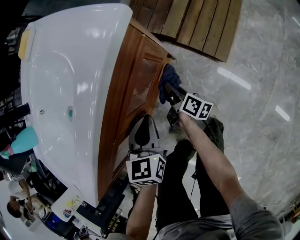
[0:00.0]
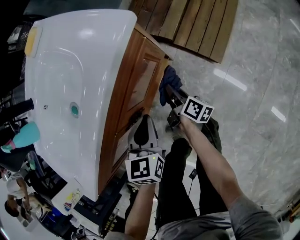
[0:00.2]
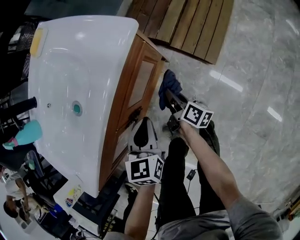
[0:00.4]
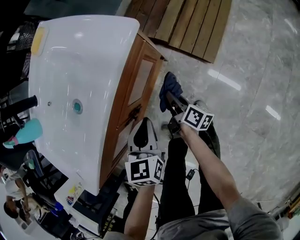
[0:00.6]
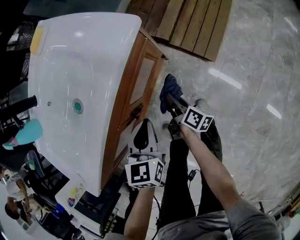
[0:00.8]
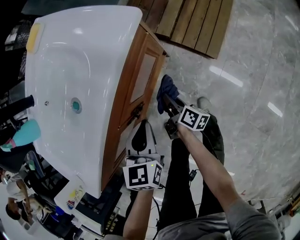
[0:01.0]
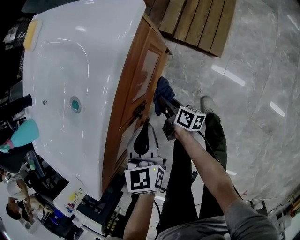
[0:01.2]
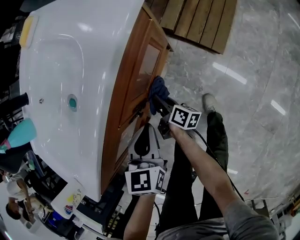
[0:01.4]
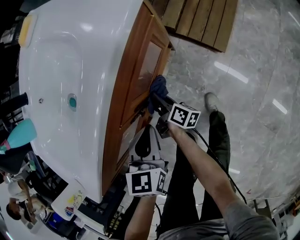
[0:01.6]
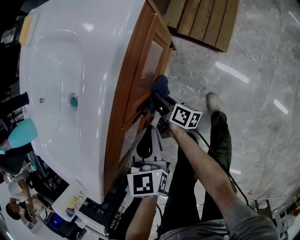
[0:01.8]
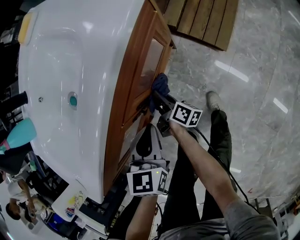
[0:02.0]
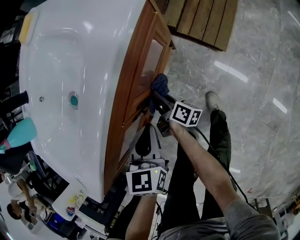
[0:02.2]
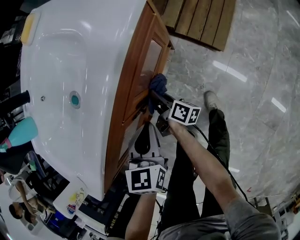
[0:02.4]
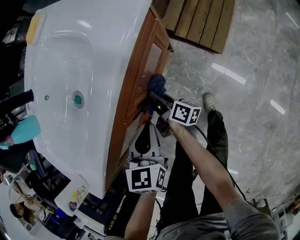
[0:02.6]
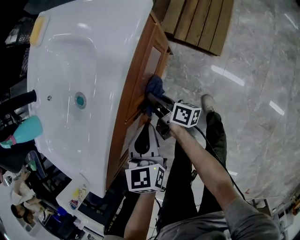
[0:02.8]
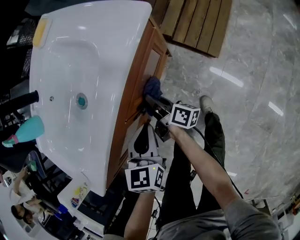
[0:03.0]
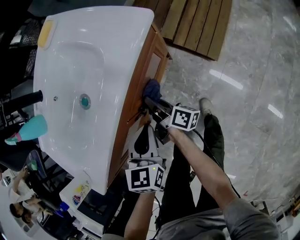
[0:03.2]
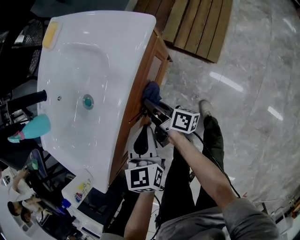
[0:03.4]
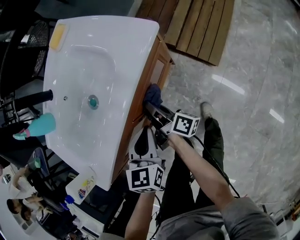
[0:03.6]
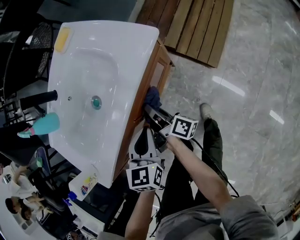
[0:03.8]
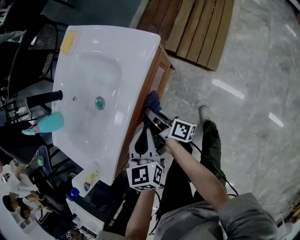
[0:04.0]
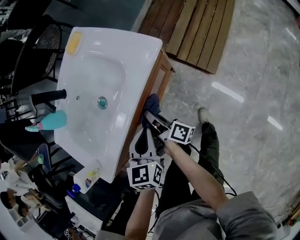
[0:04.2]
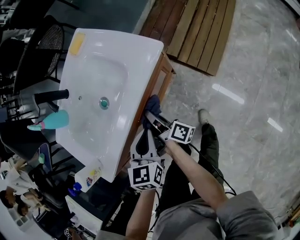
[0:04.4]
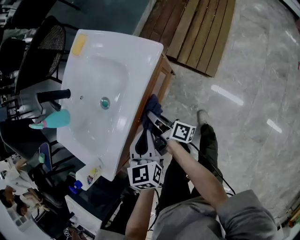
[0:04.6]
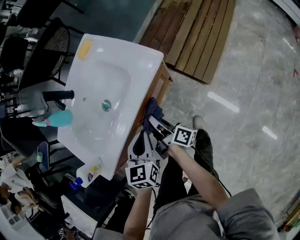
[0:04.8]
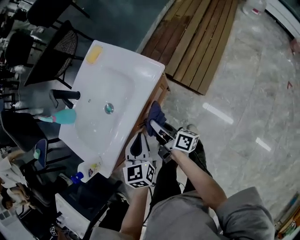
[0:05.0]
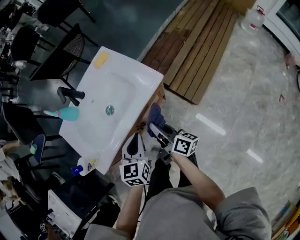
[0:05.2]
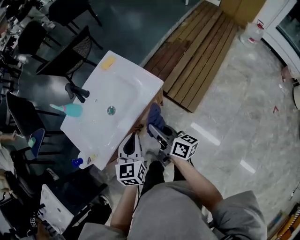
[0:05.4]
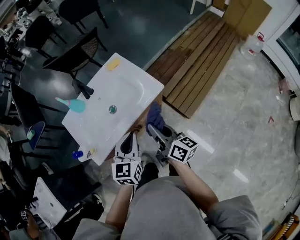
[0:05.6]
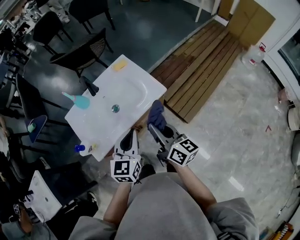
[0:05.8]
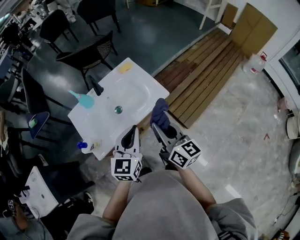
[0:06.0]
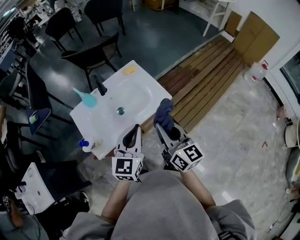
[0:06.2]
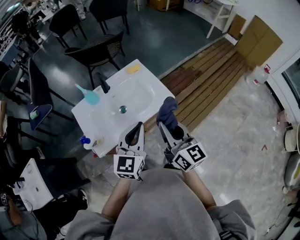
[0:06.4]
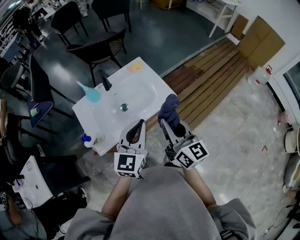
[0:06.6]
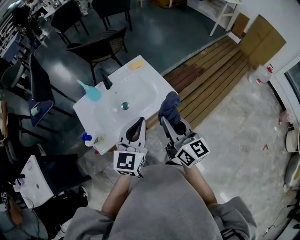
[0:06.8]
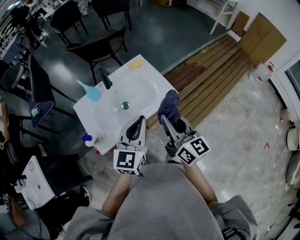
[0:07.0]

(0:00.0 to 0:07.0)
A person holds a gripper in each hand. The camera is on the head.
0:00.0 - 0:01.4: The right gripper travels to the left and backward by approximately 10 cm. The left gripper travels backward by approximately 5 cm.
0:01.4 - 0:02.8: The right gripper goes approximately 10 cm upward.
0:02.8 - 0:04.2: The right gripper is displaced upward by about 15 cm, while the left gripper shifts about 10 cm upward.
0:04.2 - 0:05.6: Both grippers move upward, some 25 cm. The right gripper rotates around the line of its fingers by approximately 40 degrees, counterclockwise from behind.
0:05.6 - 0:07.0: The two grippers go about 10 cm upward. The right gripper swivels about 30 degrees.

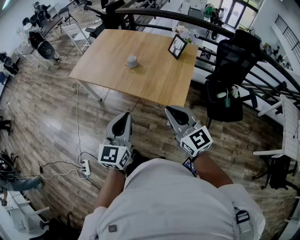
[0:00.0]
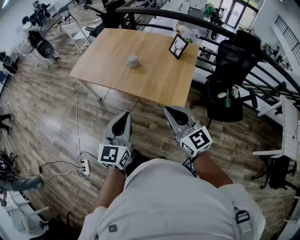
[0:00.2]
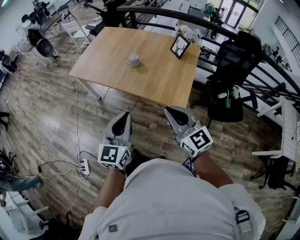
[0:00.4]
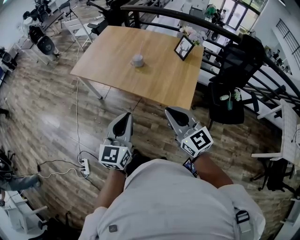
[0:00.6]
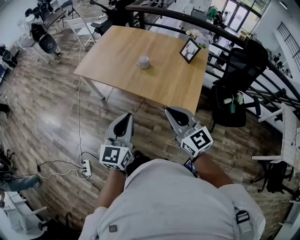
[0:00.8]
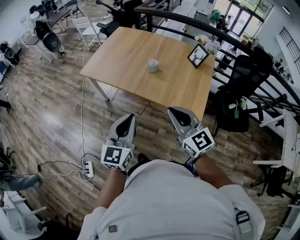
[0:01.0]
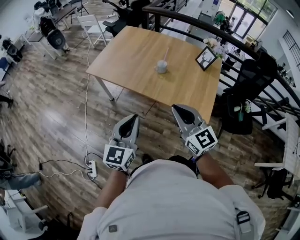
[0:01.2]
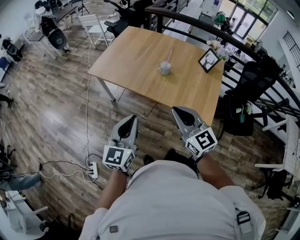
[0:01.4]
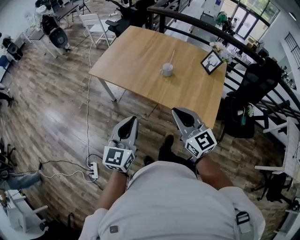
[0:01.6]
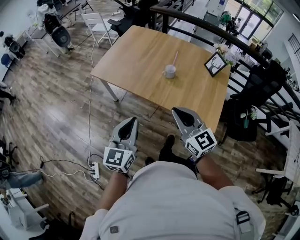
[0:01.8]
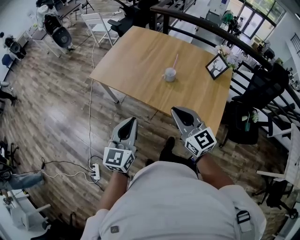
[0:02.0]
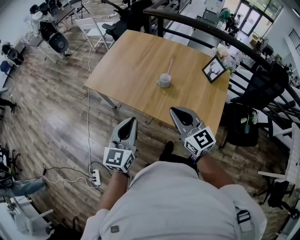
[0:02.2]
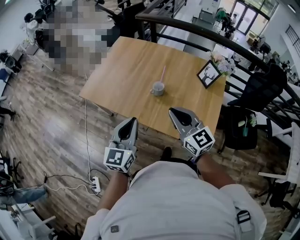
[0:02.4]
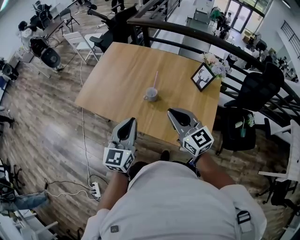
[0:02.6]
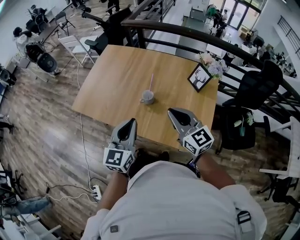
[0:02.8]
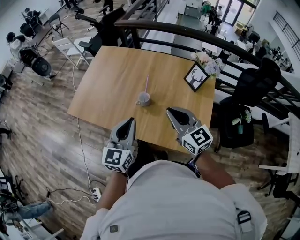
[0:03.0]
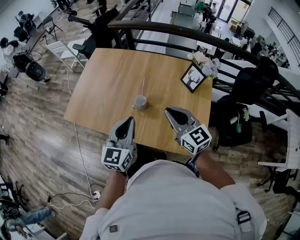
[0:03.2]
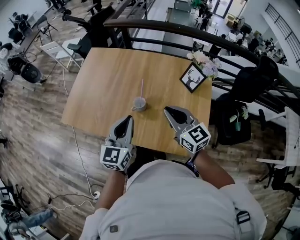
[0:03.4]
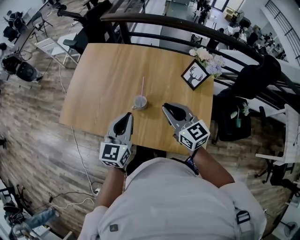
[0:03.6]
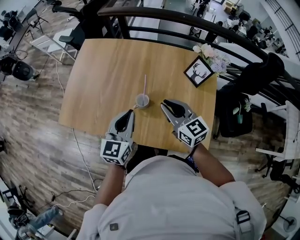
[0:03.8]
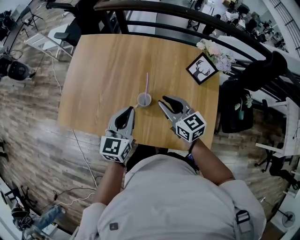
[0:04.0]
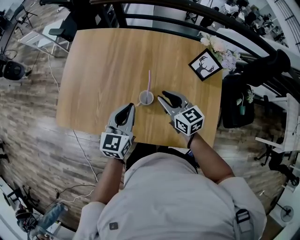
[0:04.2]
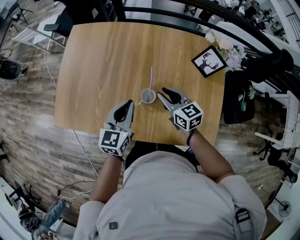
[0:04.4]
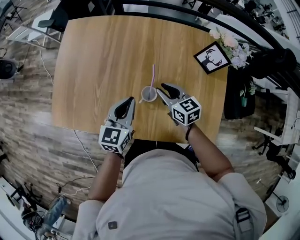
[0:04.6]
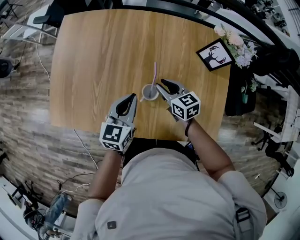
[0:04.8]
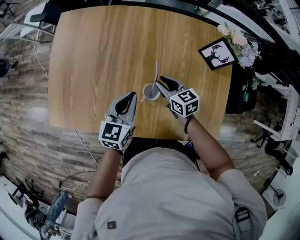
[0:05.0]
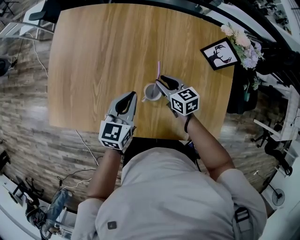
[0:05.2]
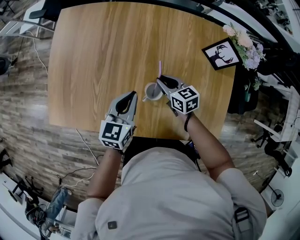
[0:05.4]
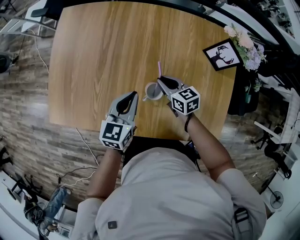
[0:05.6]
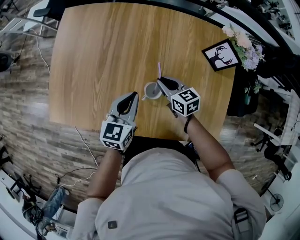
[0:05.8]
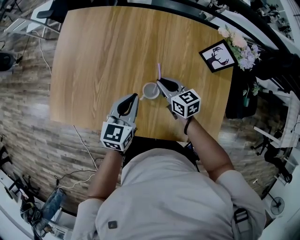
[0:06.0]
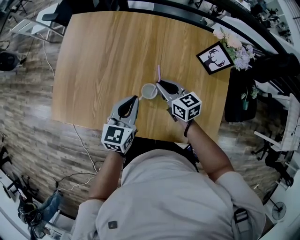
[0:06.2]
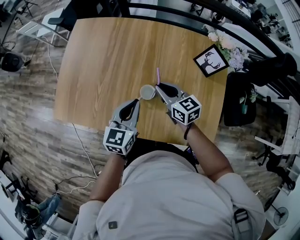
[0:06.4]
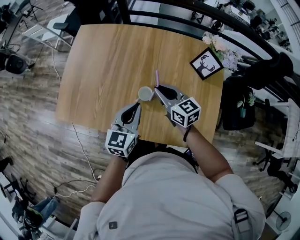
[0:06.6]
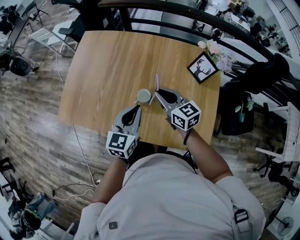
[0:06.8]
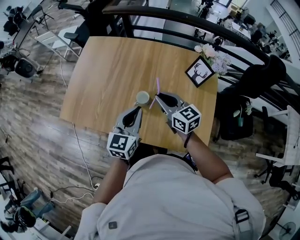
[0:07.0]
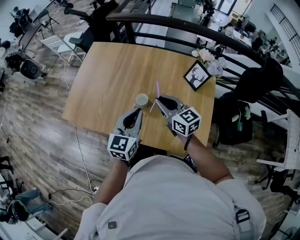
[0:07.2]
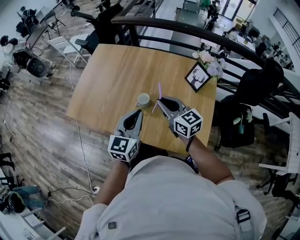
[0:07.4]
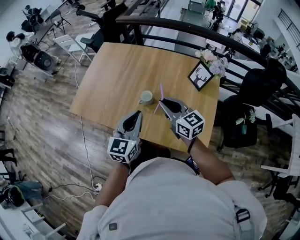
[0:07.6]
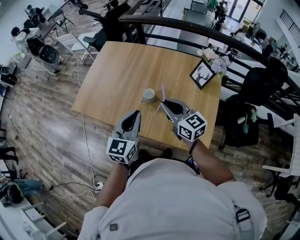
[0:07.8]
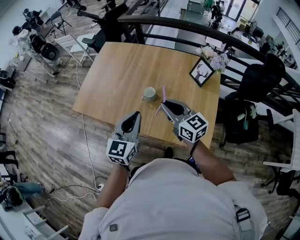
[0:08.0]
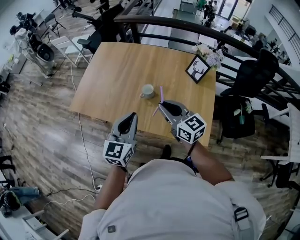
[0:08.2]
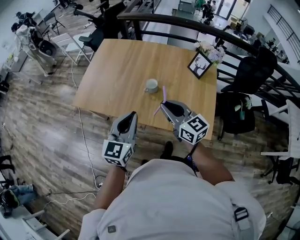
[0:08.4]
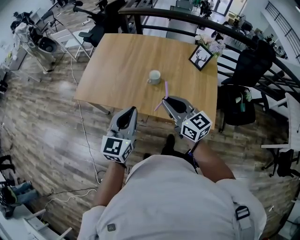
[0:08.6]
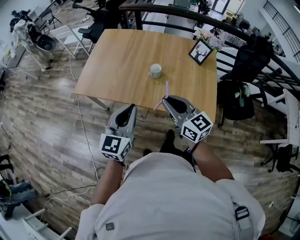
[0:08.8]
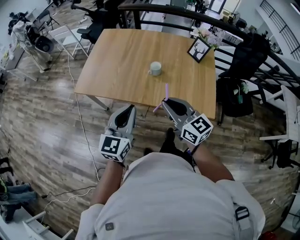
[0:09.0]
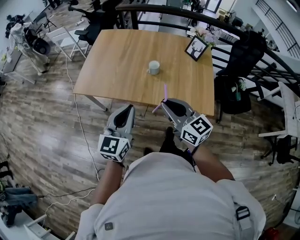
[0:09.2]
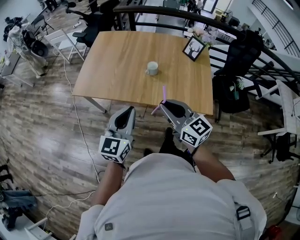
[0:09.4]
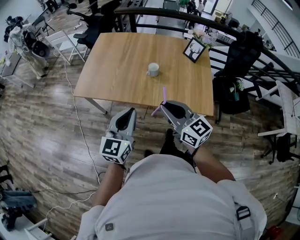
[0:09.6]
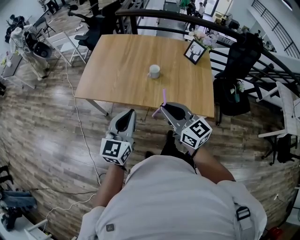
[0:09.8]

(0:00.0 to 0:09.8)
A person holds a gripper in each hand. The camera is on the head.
0:00.0 - 0:01.4: The two grippers go roughly 25 cm to the left and forward.
0:01.4 - 0:02.8: Both grippers travel together forward and to the right, about 30 cm.
0:02.8 - 0:04.2: The grippers both shift forward and downward by some 30 cm. The right gripper rotates roughly 20 degrees, and opens up.
0:04.2 - 0:05.6: The grippers both shift downward and forward by approximately 15 cm.
0:05.6 - 0:07.0: The left gripper heads backward, upward and to the right, covering approximately 20 cm, while the right gripper moves upward and backward, approximately 25 cm, and rotates approximately 20 degrees.
0:07.0 - 0:08.4: The left gripper is displaced backward, to the left and upward by some 25 cm; the right gripper travels backward and upward by approximately 20 cm.
0:08.4 - 0:09.8: Both grippers travel together backward and to the left, roughly 20 cm.

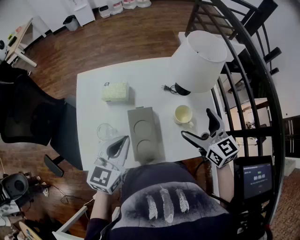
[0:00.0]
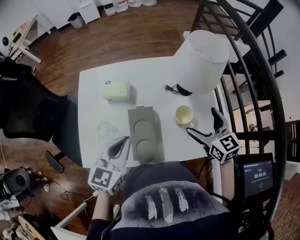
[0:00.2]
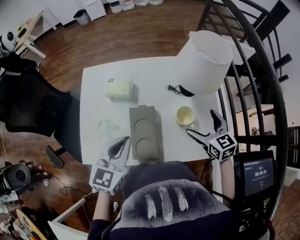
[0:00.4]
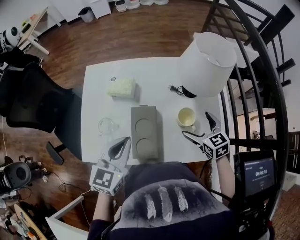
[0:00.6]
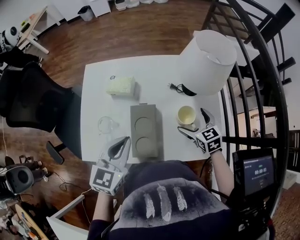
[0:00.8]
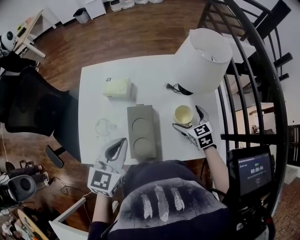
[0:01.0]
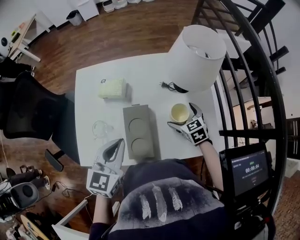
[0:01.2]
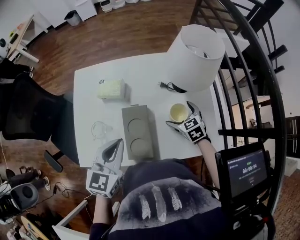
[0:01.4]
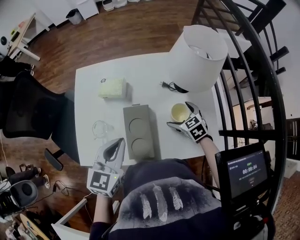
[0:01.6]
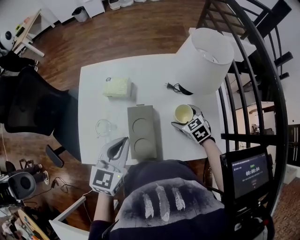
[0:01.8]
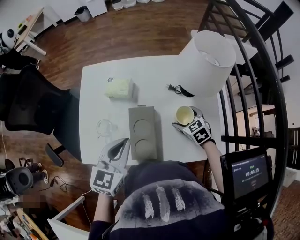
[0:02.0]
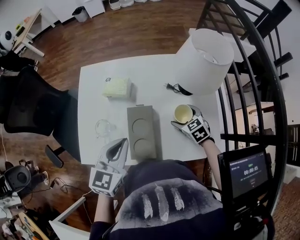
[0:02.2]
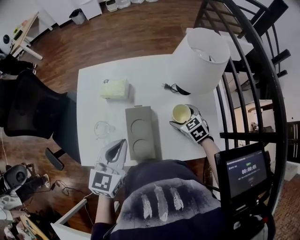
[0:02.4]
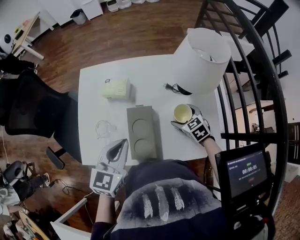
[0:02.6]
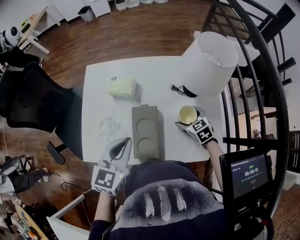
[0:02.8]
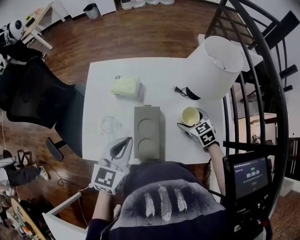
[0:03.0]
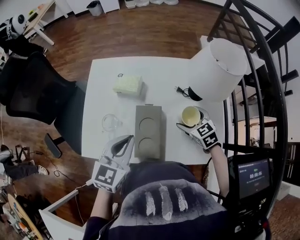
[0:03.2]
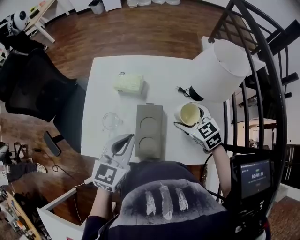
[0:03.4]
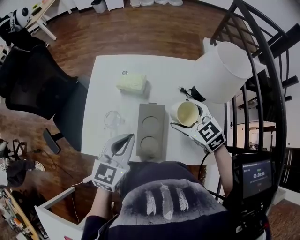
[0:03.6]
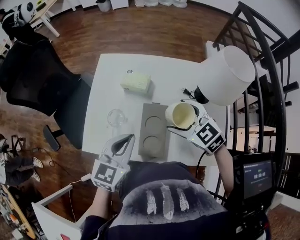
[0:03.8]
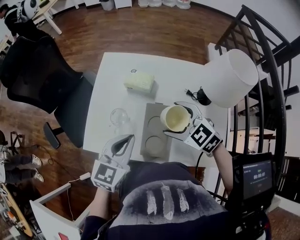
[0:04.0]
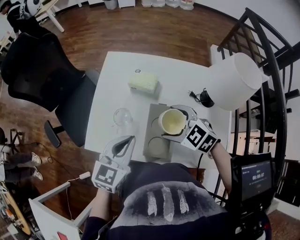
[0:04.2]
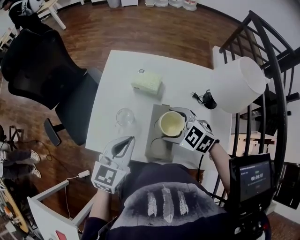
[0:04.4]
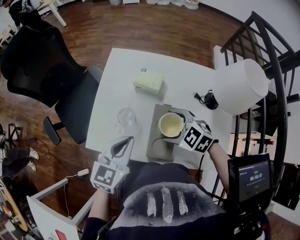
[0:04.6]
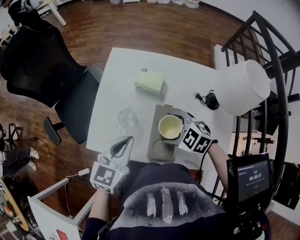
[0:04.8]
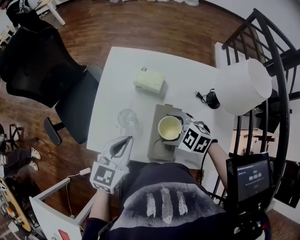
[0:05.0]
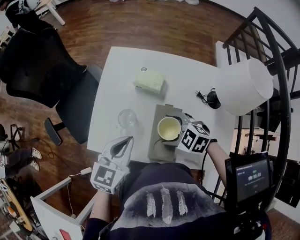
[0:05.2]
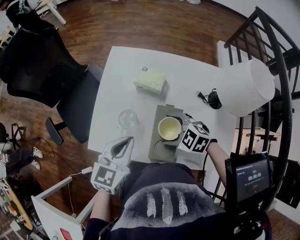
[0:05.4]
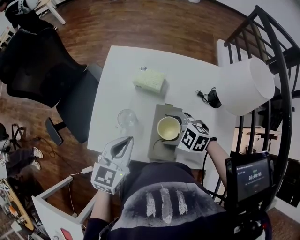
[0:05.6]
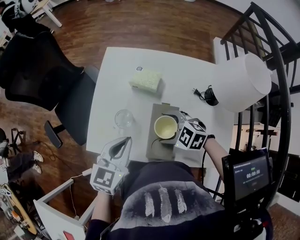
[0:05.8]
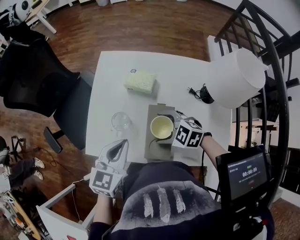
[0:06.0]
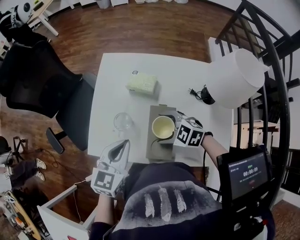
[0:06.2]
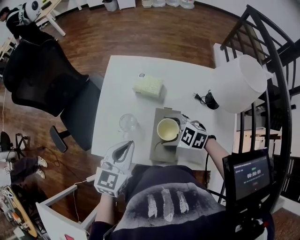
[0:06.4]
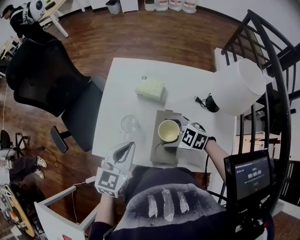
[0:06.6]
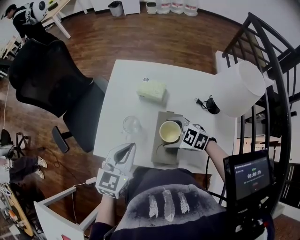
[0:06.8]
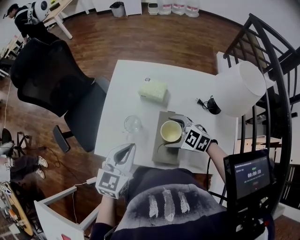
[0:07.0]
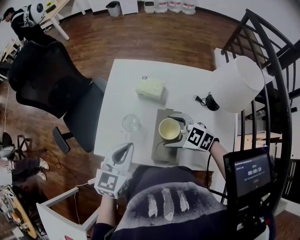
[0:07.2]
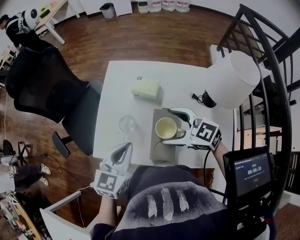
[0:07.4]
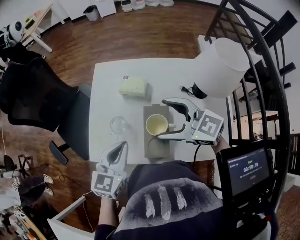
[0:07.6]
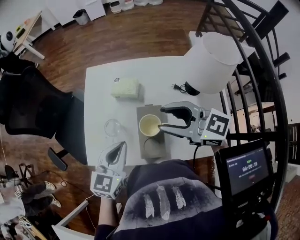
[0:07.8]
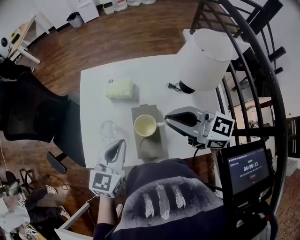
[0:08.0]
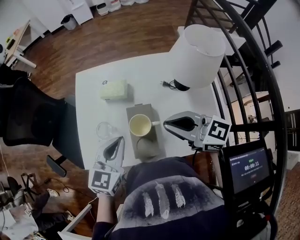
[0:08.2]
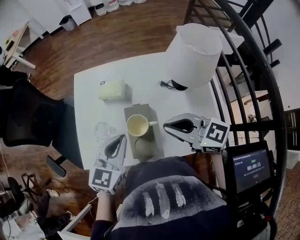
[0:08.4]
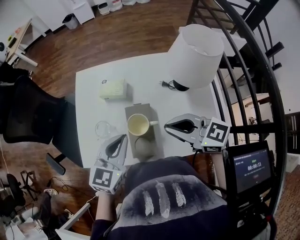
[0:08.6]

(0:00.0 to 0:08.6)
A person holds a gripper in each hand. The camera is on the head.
0:00.0 - 0:01.4: The right gripper moves downward, some 20 cm, and swivels some 30 degrees.
0:01.4 - 0:02.8: The grippers move only a little.
0:02.8 - 0:04.4: The left gripper shifts roughly 10 cm to the left; the right gripper travels to the left and upward by some 25 cm, and rotates about 40 degrees.
0:04.4 - 0:05.8: The right gripper shifts roughly 5 cm downward.
0:05.8 - 0:07.2: The grippers make only small movements.
0:07.2 - 0:08.6: The left gripper moves to the right, roughly 10 cm. Meanwhile the right gripper heads to the right, upward and backward, covering some 15 cm, turns by about 30 degrees, and closes.
